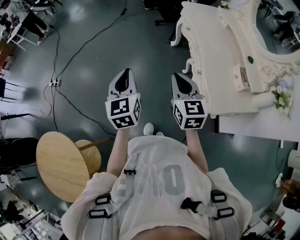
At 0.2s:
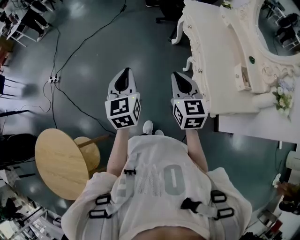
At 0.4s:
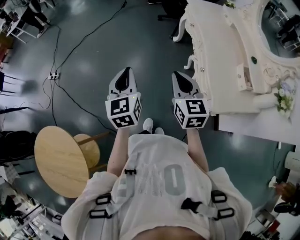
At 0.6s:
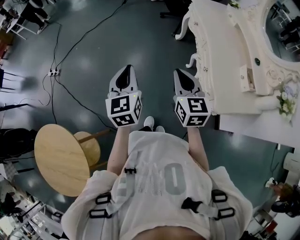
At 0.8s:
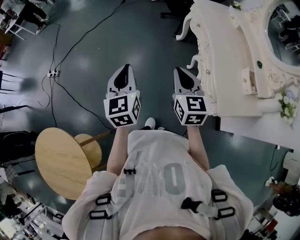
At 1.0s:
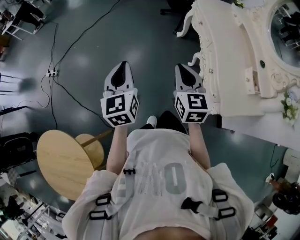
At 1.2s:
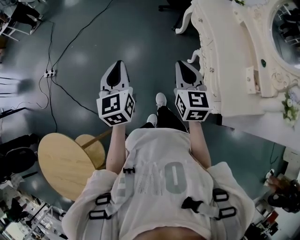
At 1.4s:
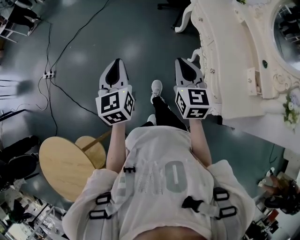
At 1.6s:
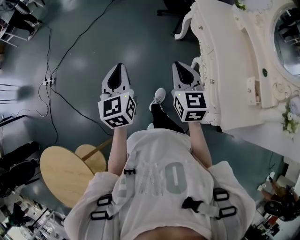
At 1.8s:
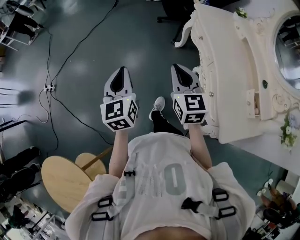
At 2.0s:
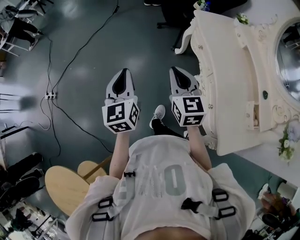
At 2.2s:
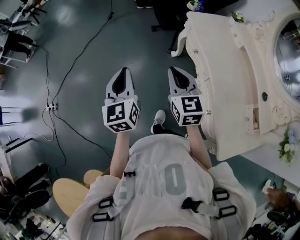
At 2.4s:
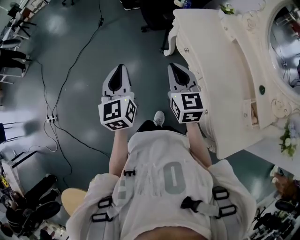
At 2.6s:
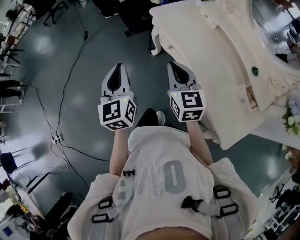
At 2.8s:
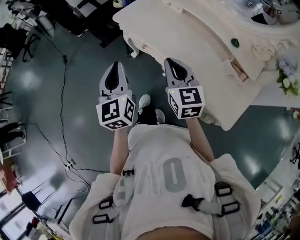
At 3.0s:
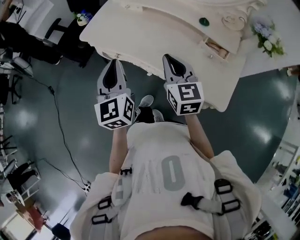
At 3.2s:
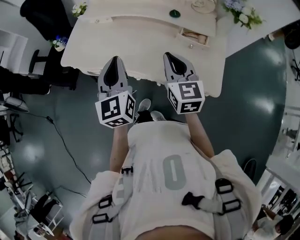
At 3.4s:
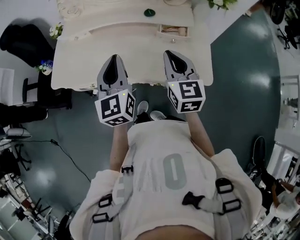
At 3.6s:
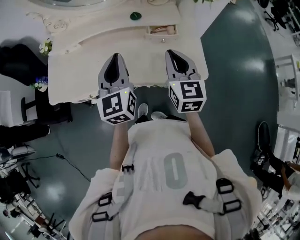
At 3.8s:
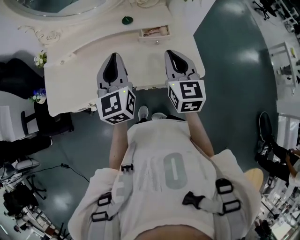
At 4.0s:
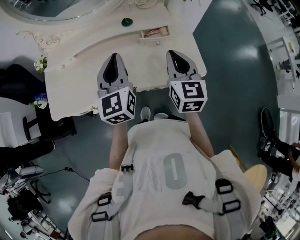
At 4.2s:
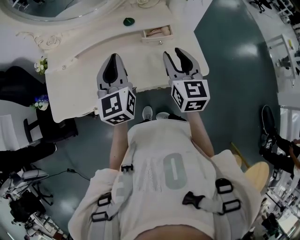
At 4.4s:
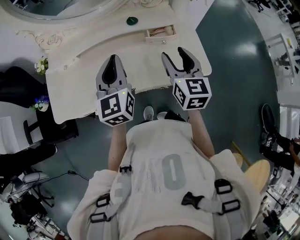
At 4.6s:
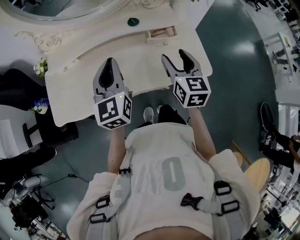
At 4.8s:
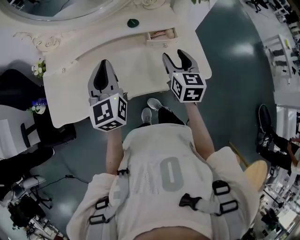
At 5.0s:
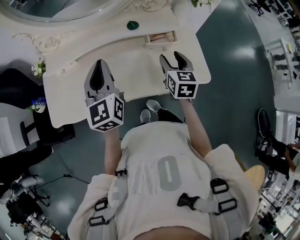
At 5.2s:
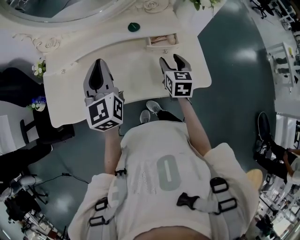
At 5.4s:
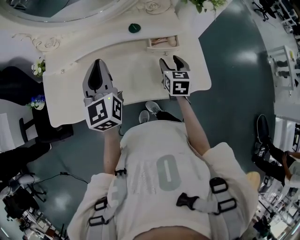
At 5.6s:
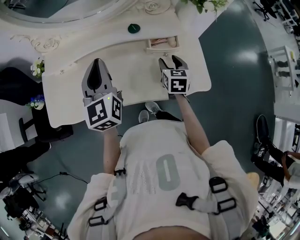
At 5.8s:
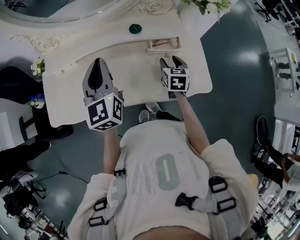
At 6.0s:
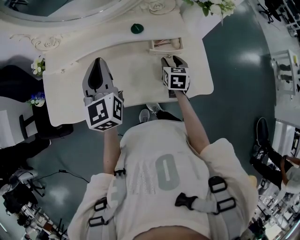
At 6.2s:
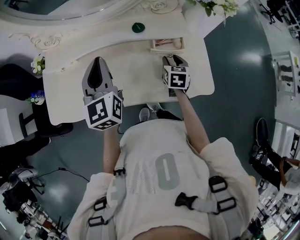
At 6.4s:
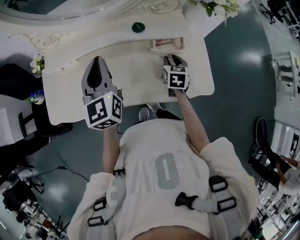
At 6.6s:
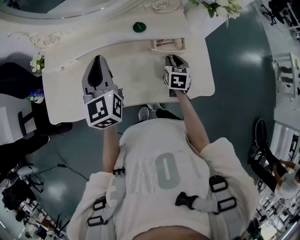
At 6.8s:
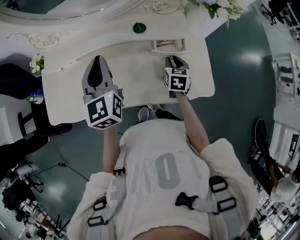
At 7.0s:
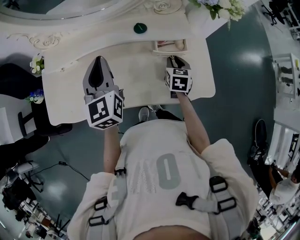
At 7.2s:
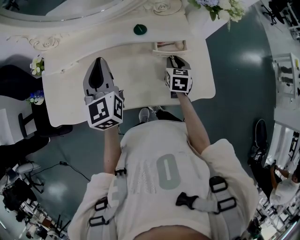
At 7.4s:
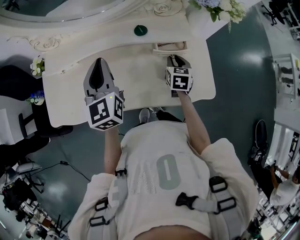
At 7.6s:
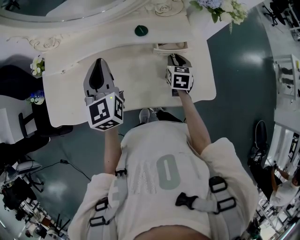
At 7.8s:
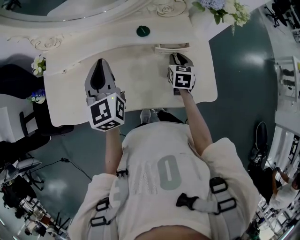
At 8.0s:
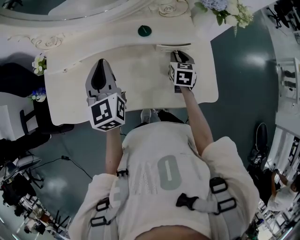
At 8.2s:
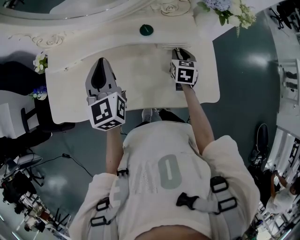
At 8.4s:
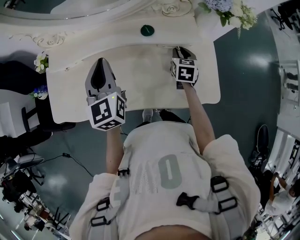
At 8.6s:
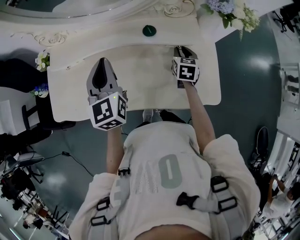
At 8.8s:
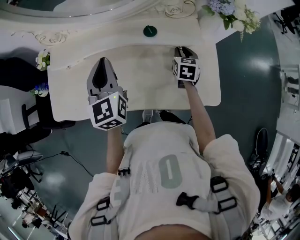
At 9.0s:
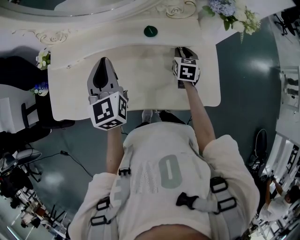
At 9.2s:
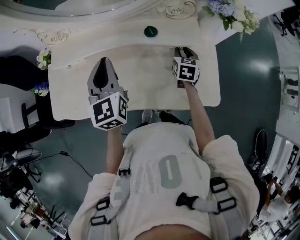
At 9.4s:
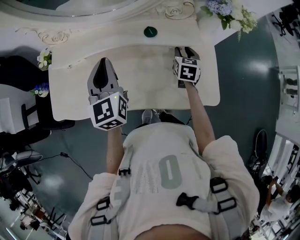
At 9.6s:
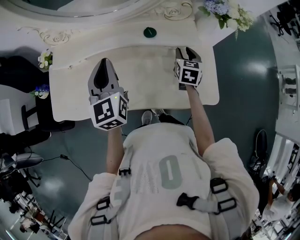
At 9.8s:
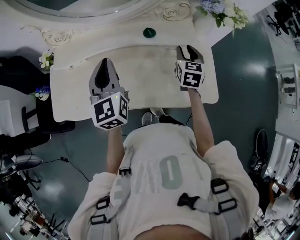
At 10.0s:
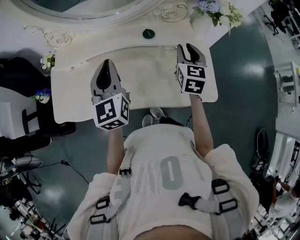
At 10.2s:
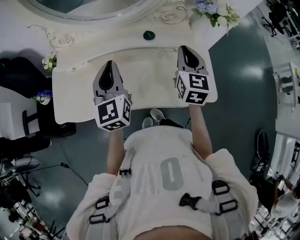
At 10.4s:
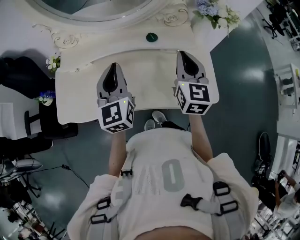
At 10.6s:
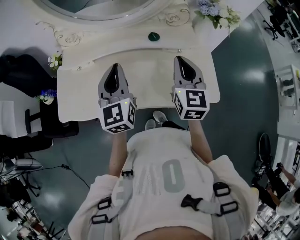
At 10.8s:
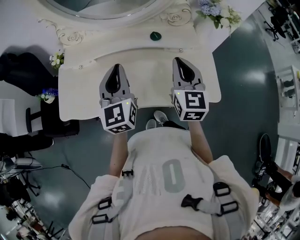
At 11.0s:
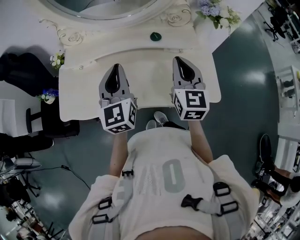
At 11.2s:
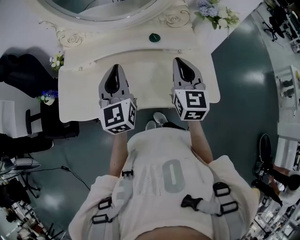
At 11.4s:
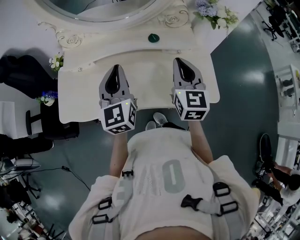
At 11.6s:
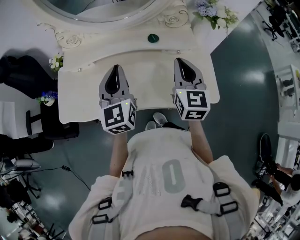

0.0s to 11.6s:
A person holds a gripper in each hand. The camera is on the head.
0.0s to 1.4s: Both grippers travel together forward and to the left, some 15 cm.
1.4s to 2.8s: The right gripper changes place by roughly 35 cm, and rotates approximately 30 degrees, while the left gripper shifts by some 50 cm, and changes its angle by approximately 40 degrees.
2.8s to 4.4s: The left gripper shifts by about 30 cm, and swivels approximately 60 degrees; the right gripper moves about 25 cm, rotates approximately 60 degrees, and opens its fingers.
4.4s to 5.8s: The left gripper heads forward, covering approximately 5 cm. Meanwhile the right gripper is displaced downward and forward by roughly 20 cm, and changes its angle by roughly 20 degrees.
5.8s to 7.2s: The right gripper closes up.
7.2s to 8.8s: The right gripper moves forward, approximately 5 cm.
8.8s to 10.2s: The left gripper moves backward, about 5 cm. The right gripper goes approximately 25 cm upward and backward, and changes its angle by approximately 30 degrees.
10.2s to 11.6s: The right gripper moves backward, some 5 cm.

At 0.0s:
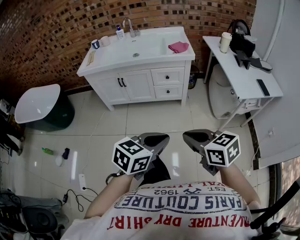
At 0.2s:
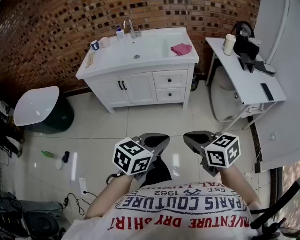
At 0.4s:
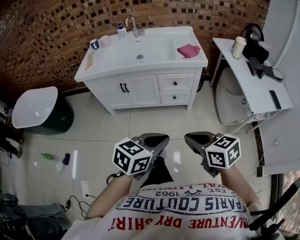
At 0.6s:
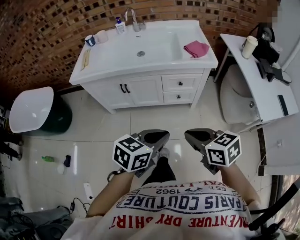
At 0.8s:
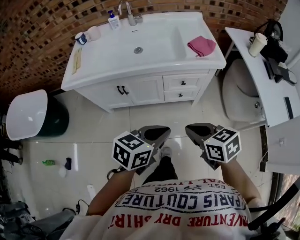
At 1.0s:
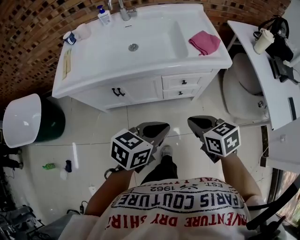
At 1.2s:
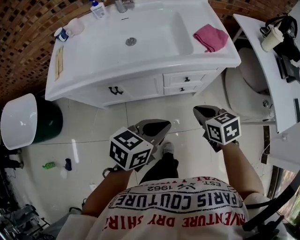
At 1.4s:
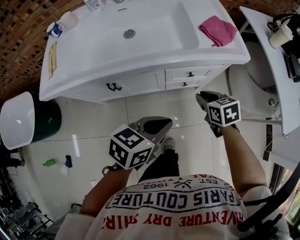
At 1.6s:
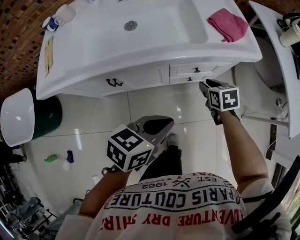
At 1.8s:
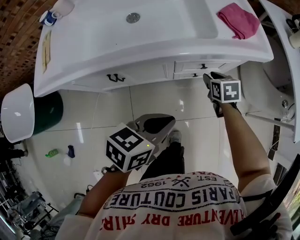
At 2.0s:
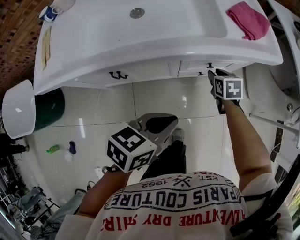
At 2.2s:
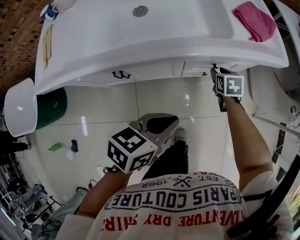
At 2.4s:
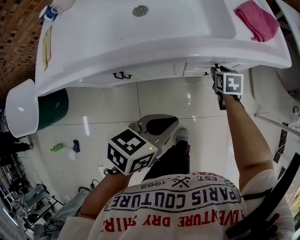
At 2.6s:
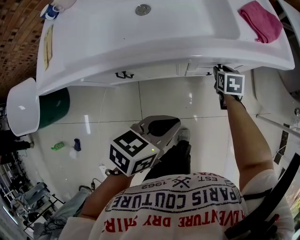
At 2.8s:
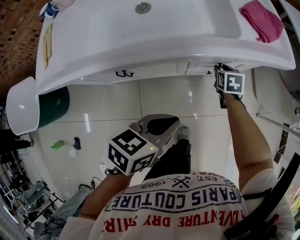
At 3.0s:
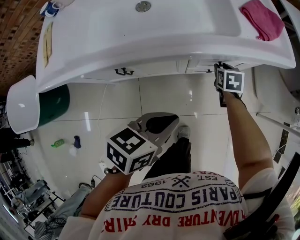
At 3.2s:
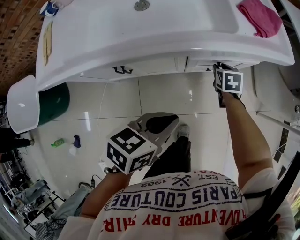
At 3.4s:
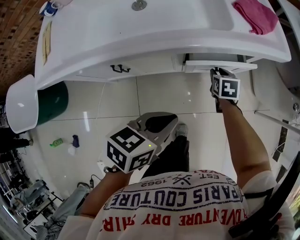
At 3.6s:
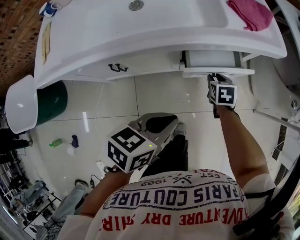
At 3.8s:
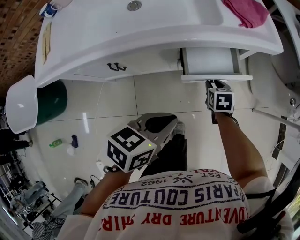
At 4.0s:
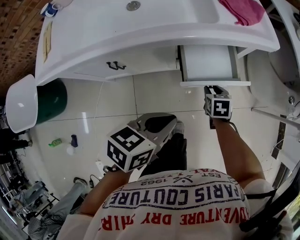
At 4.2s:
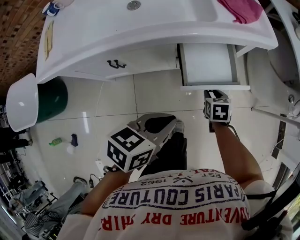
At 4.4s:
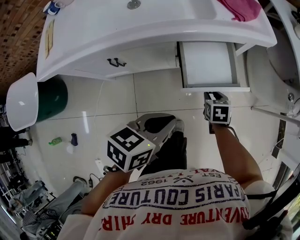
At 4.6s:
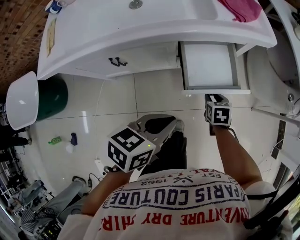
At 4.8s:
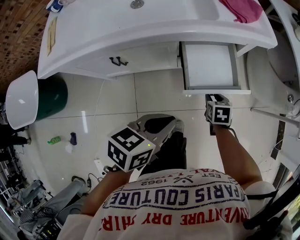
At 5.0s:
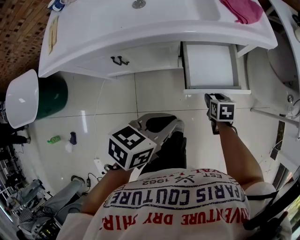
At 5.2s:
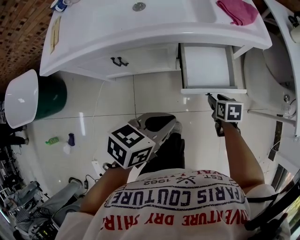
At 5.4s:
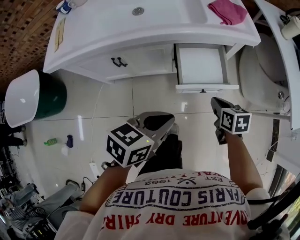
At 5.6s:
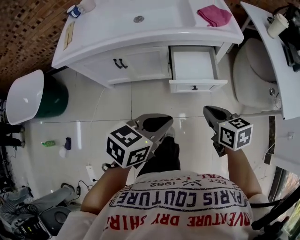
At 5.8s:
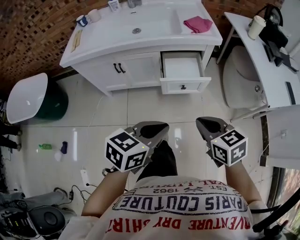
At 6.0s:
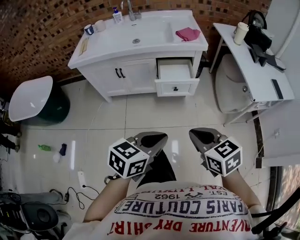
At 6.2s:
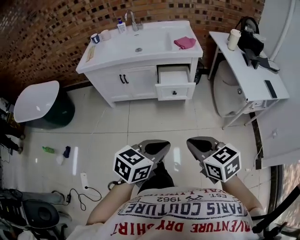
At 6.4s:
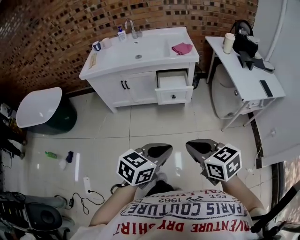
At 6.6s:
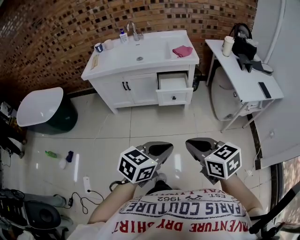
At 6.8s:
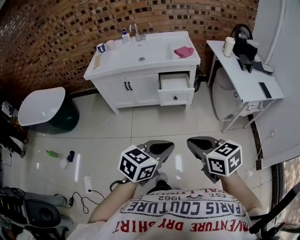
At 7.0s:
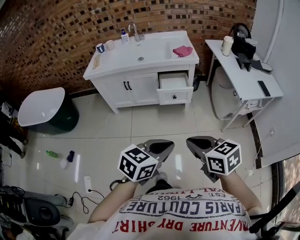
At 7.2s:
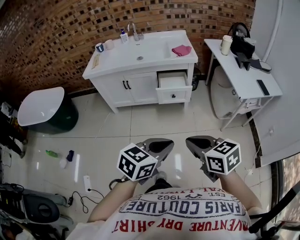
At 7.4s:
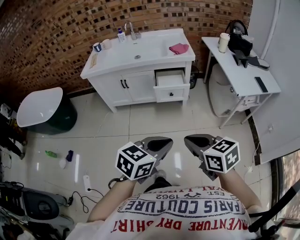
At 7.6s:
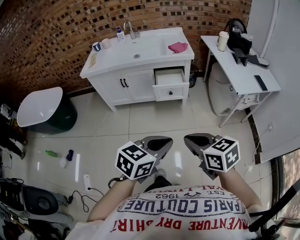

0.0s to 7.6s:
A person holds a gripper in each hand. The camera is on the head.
0.0s to 1.6s: Both grippers are carried forward, some 60 cm. The right gripper is displaced downward by roughly 30 cm, swivels some 40 degrees, and opens its fingers. The left gripper turns by some 20 degrees.
1.6s to 3.0s: The right gripper heads downward and forward, covering roughly 15 cm. The left gripper is displaced downward by roughly 5 cm.
3.0s to 4.6s: The left gripper is displaced to the right and backward by some 10 cm; the right gripper heads backward and to the right, covering roughly 20 cm.
4.6s to 6.0s: The left gripper moves backward, to the right and upward, about 35 cm, and turns by about 20 degrees. Meanwhile the right gripper goes roughly 50 cm upward and backward, changes its angle by about 40 degrees, and closes up.
6.0s to 7.6s: Both grippers travel together backward and upward, some 15 cm.

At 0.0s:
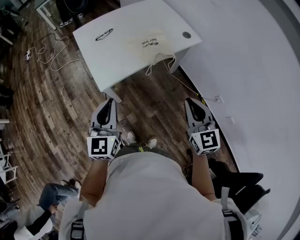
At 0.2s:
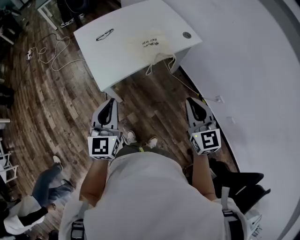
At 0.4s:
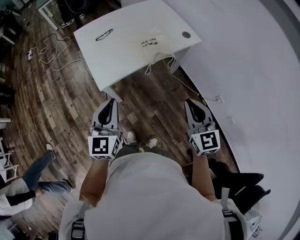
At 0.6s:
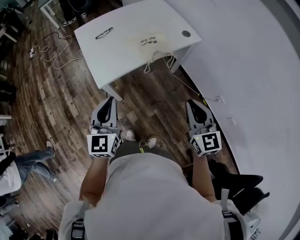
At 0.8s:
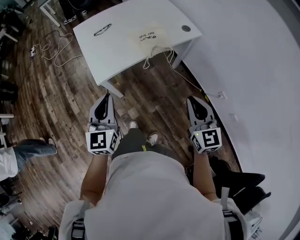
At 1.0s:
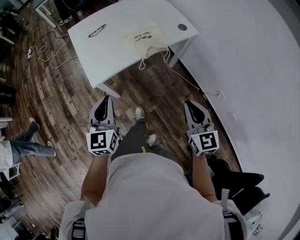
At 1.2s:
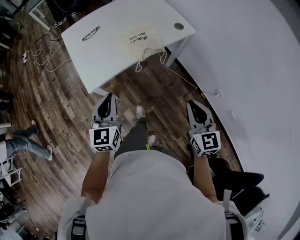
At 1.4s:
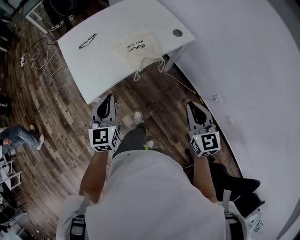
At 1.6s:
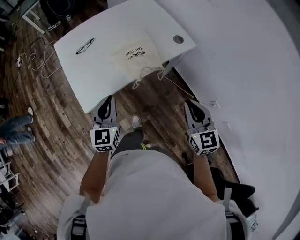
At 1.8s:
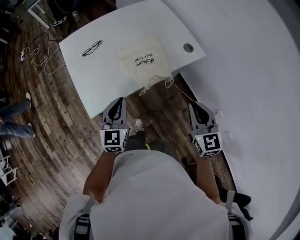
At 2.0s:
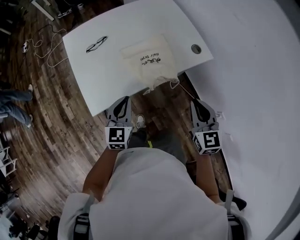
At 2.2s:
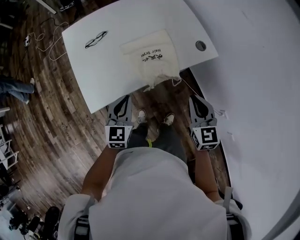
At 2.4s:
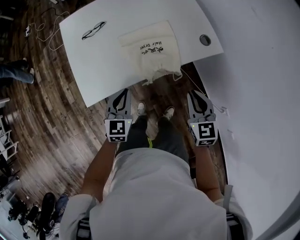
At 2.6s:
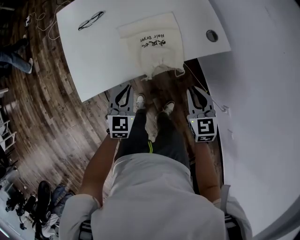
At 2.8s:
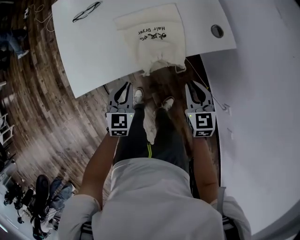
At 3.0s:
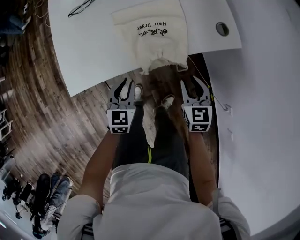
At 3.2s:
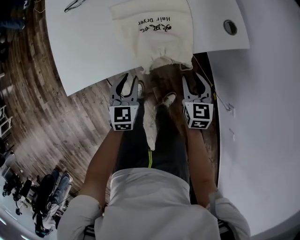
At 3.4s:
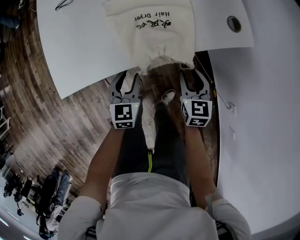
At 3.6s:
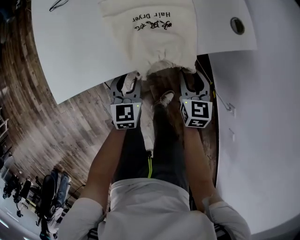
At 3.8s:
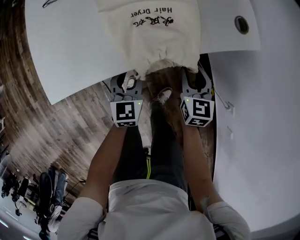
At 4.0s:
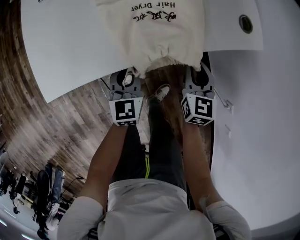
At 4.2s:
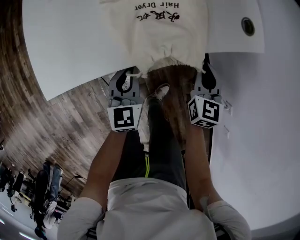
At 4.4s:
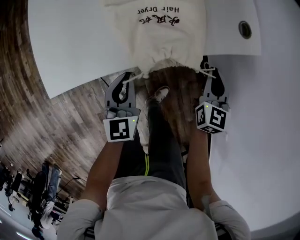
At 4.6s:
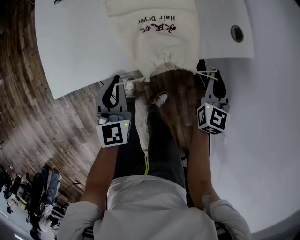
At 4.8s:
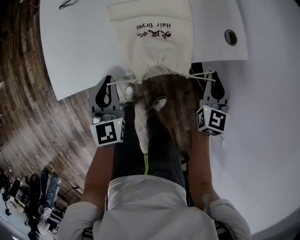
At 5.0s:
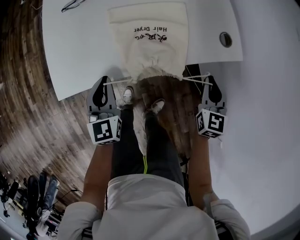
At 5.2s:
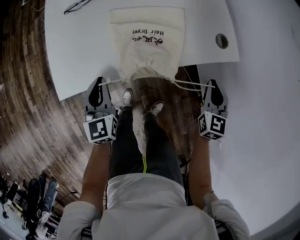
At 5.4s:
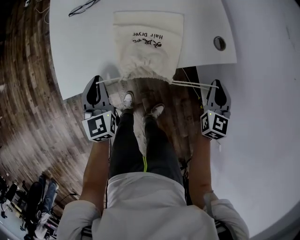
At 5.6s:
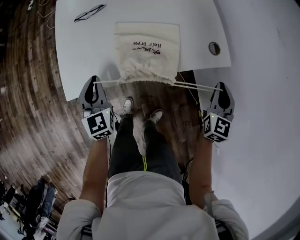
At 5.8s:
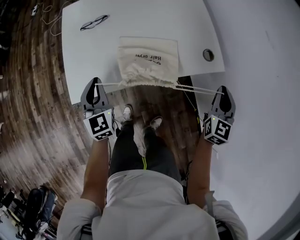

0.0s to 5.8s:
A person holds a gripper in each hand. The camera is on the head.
0.0s to 1.4s: The right gripper heads to the right, downward and forward, covering some 15 cm. Meanwhile the left gripper is displaced forward, to the right and downward by roughly 15 cm.
1.4s to 2.8s: The left gripper travels downward and forward by about 25 cm, while the right gripper is displaced forward and downward by about 30 cm, and changes its angle by roughly 20 degrees.
2.8s to 4.4s: The left gripper moves downward, about 5 cm, changes its angle by about 20 degrees, and opens, then closes once more. Meanwhile the right gripper travels downward, forward and to the right by some 15 cm, and opens, then closes once more.
4.4s to 5.8s: The left gripper is displaced upward and to the left by about 20 cm, and turns by roughly 20 degrees, while the right gripper goes approximately 20 cm upward.
